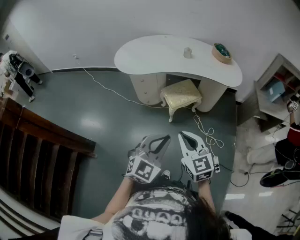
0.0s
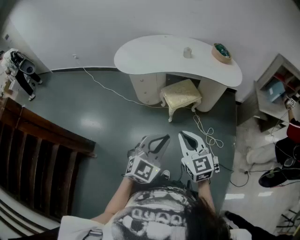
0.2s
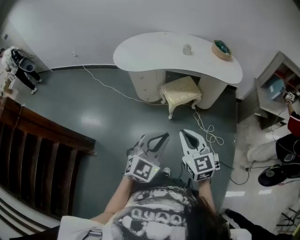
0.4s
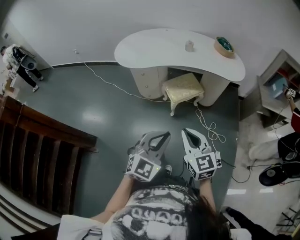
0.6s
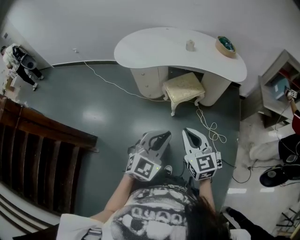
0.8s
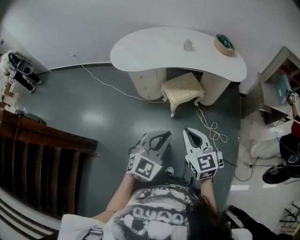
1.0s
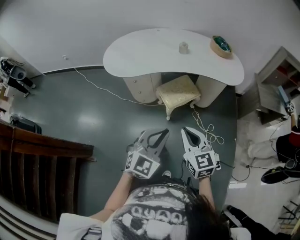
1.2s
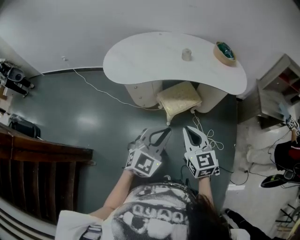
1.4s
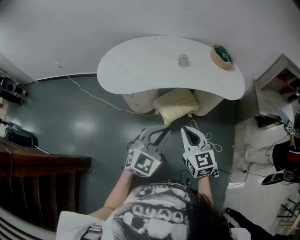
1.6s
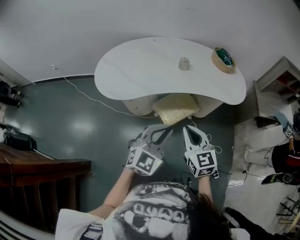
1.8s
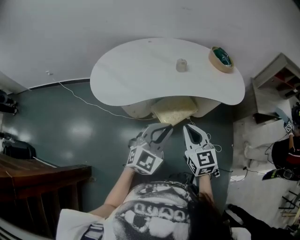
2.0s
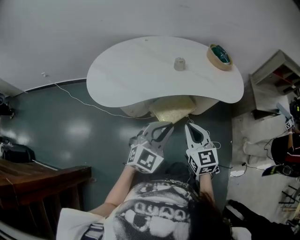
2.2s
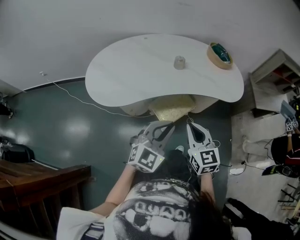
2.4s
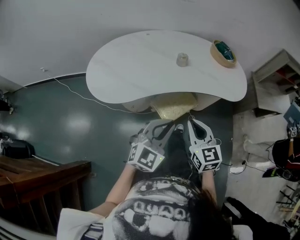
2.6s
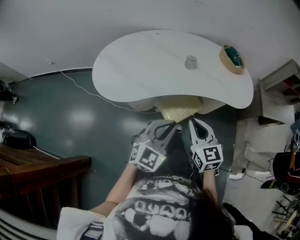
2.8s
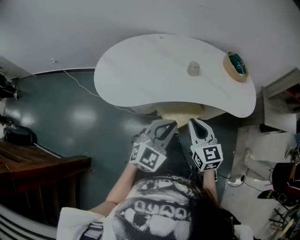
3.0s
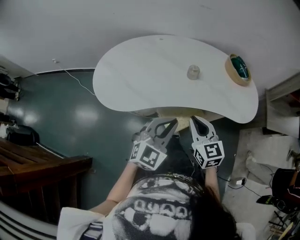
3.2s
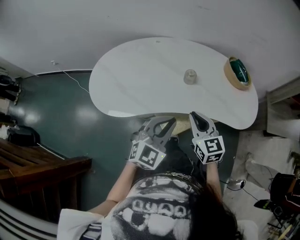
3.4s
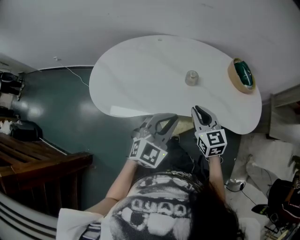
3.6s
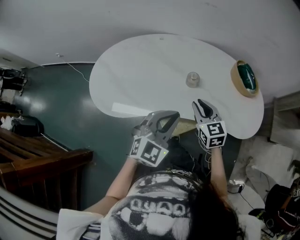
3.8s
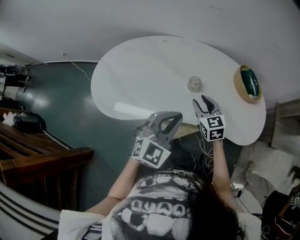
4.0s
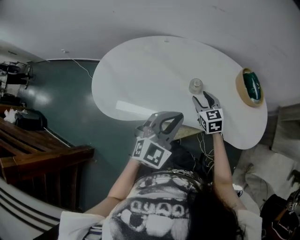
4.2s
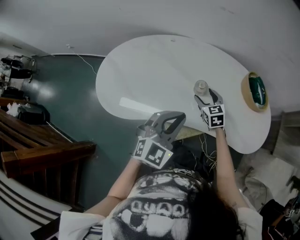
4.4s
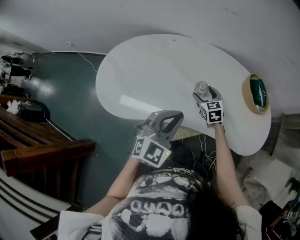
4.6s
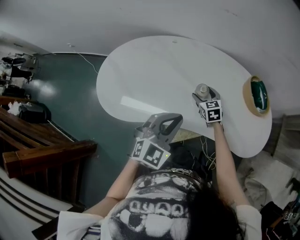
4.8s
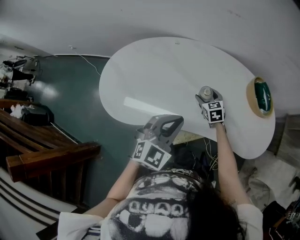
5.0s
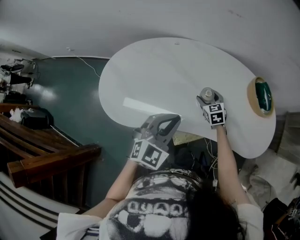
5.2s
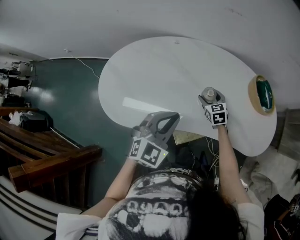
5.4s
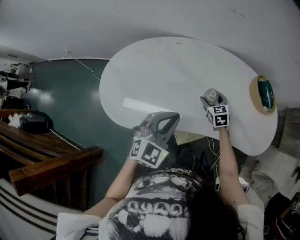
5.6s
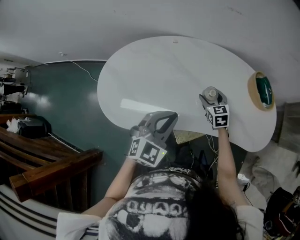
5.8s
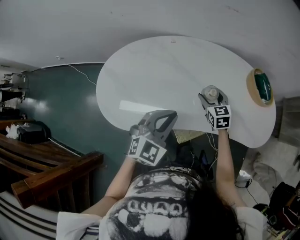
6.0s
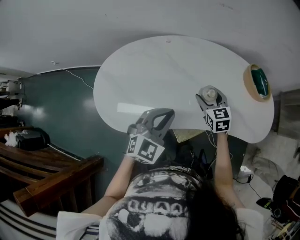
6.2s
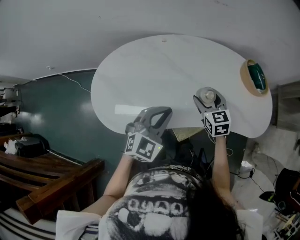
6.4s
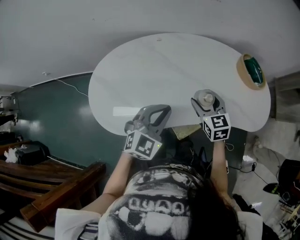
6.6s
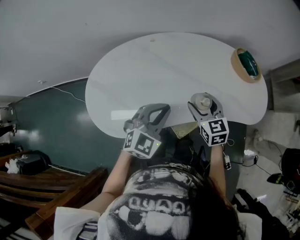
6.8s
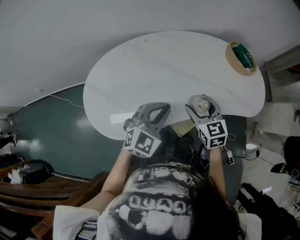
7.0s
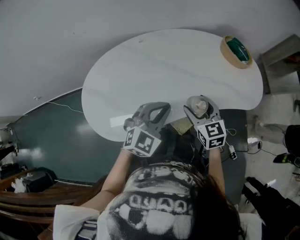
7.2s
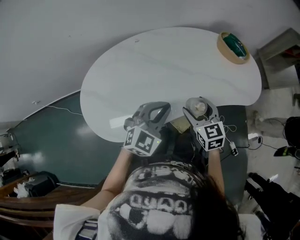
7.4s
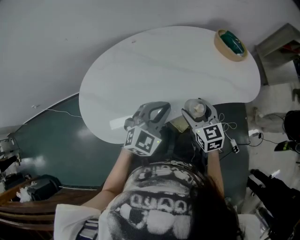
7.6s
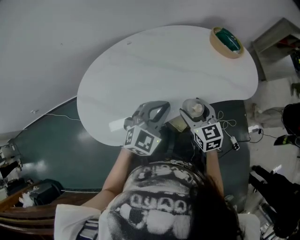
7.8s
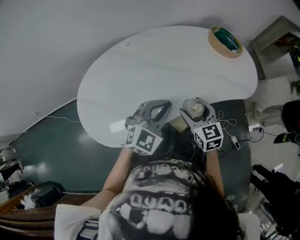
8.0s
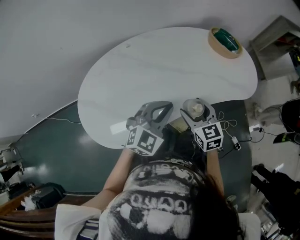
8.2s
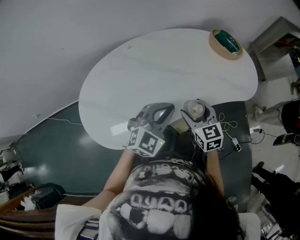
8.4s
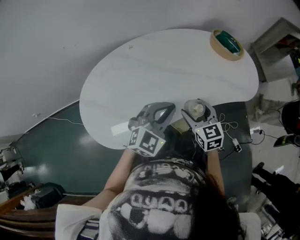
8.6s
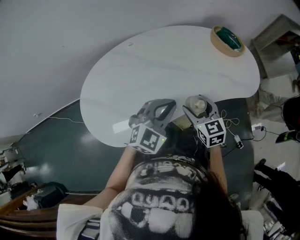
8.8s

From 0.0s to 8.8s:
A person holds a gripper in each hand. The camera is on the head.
From 0.0s to 1.4s: Both grippers travel together forward, about 20 cm.
From 1.4s to 3.0s: Both grippers travel together forward, approximately 25 cm.
From 3.0s to 4.4s: The right gripper goes about 35 cm forward and downward, and opens up. Meanwhile the left gripper heads forward, covering approximately 20 cm.
From 4.4s to 5.8s: The left gripper heads to the left, covering roughly 10 cm.
From 5.8s to 7.4s: The right gripper is displaced backward and upward by about 20 cm, while the left gripper rotates approximately 20 degrees.
From 7.4s to 8.8s: There are only small adjustments of the grippers.

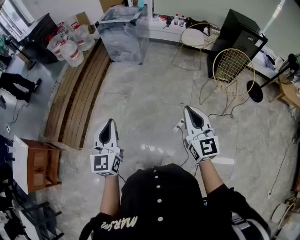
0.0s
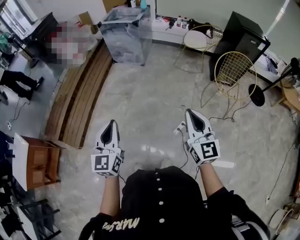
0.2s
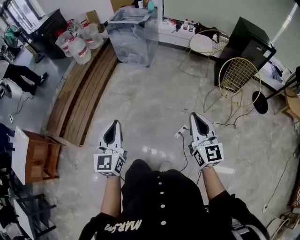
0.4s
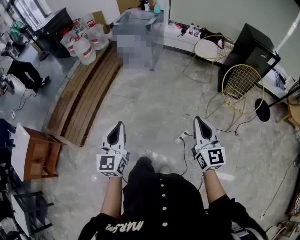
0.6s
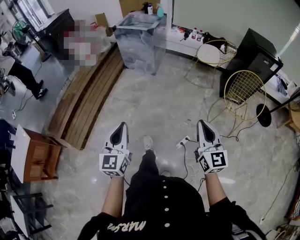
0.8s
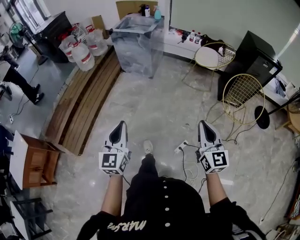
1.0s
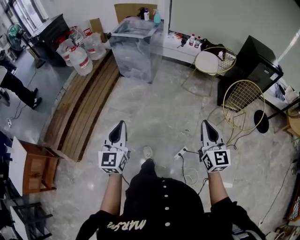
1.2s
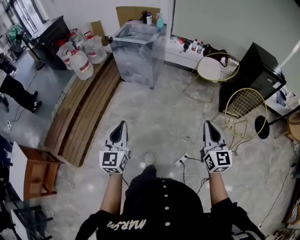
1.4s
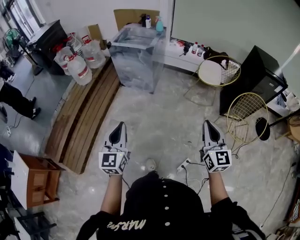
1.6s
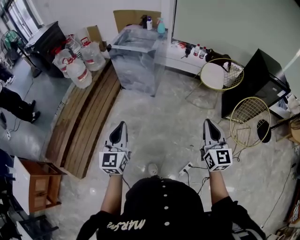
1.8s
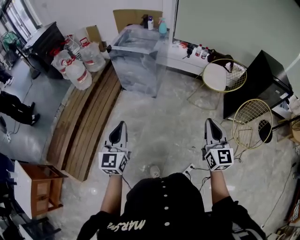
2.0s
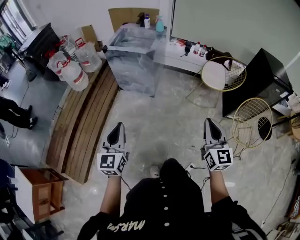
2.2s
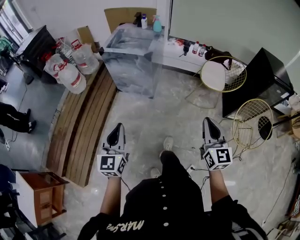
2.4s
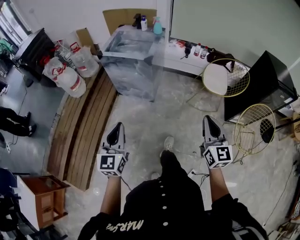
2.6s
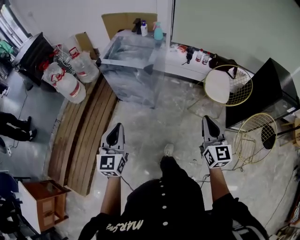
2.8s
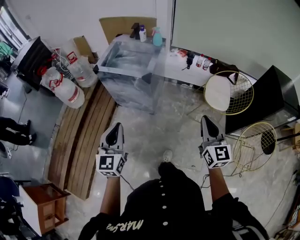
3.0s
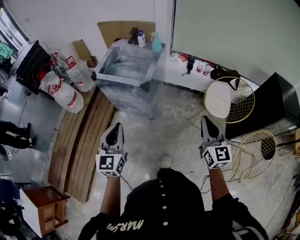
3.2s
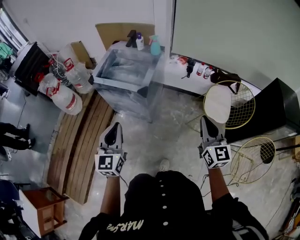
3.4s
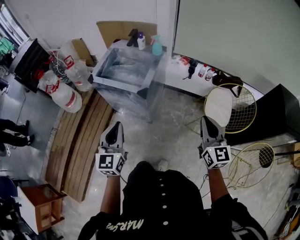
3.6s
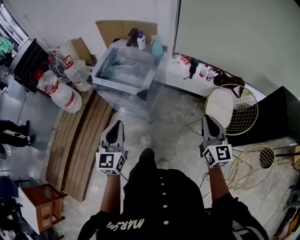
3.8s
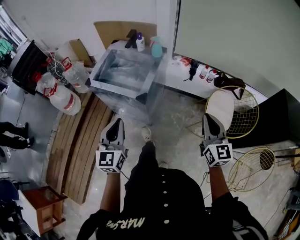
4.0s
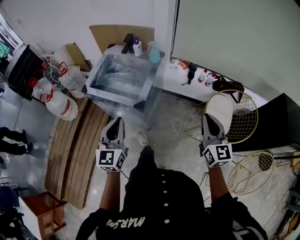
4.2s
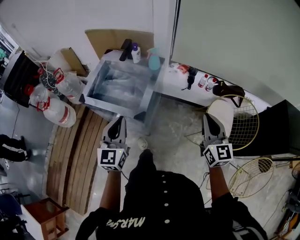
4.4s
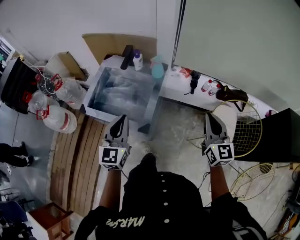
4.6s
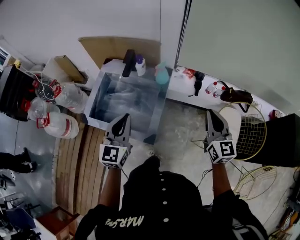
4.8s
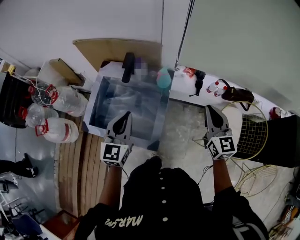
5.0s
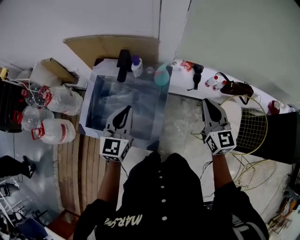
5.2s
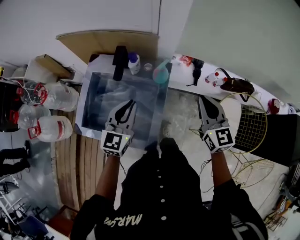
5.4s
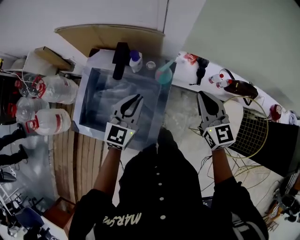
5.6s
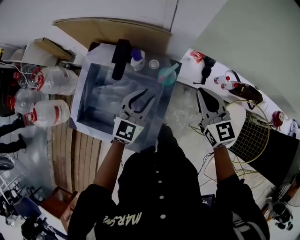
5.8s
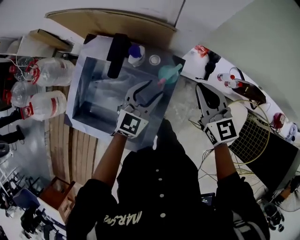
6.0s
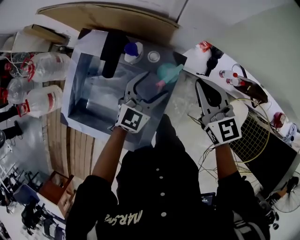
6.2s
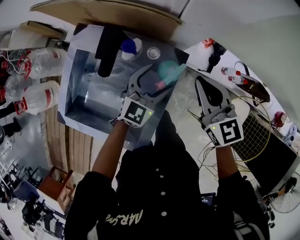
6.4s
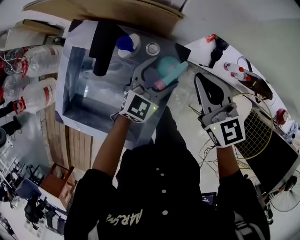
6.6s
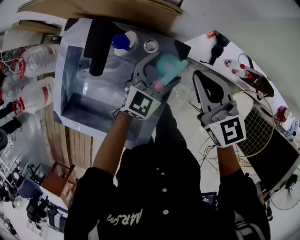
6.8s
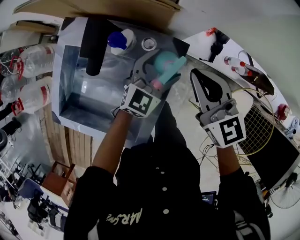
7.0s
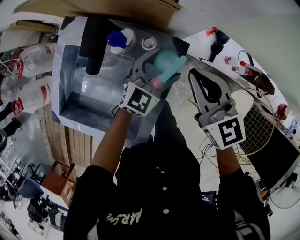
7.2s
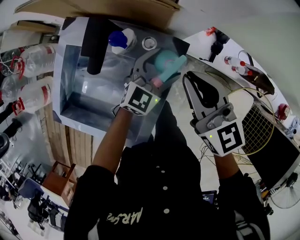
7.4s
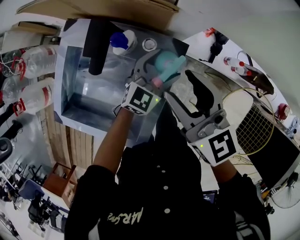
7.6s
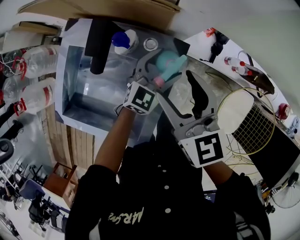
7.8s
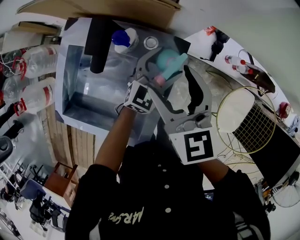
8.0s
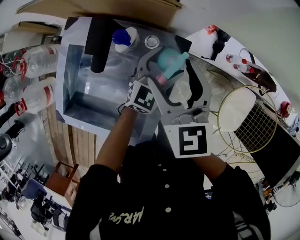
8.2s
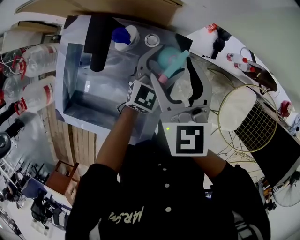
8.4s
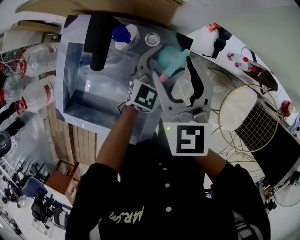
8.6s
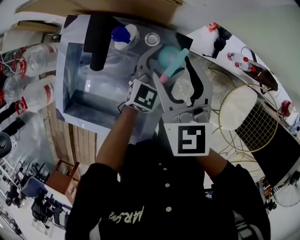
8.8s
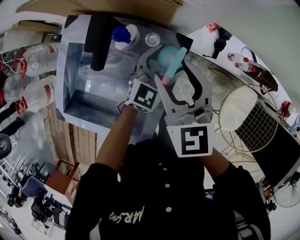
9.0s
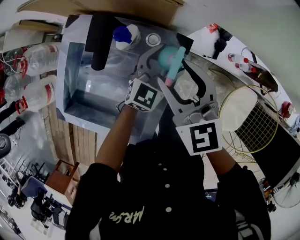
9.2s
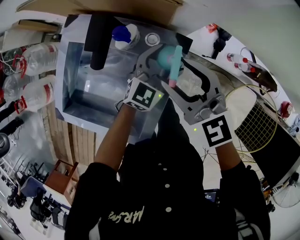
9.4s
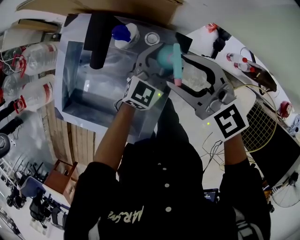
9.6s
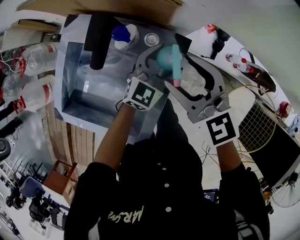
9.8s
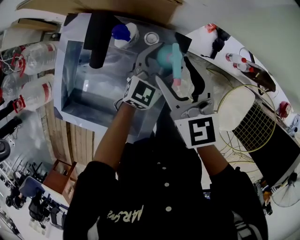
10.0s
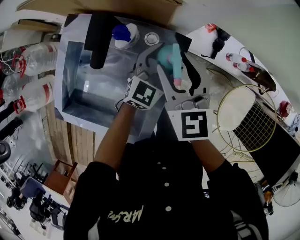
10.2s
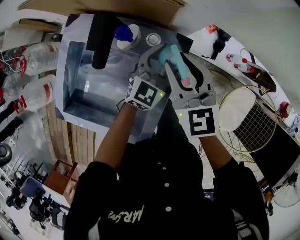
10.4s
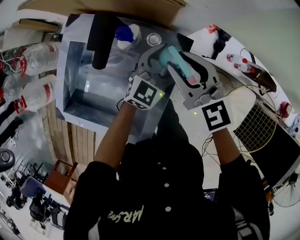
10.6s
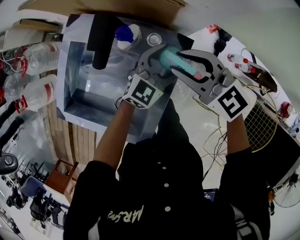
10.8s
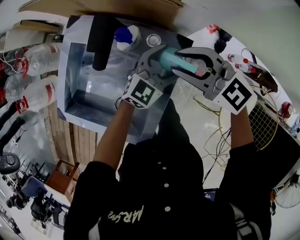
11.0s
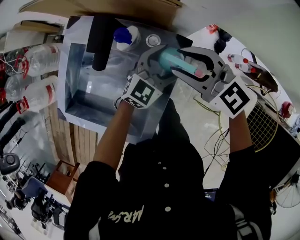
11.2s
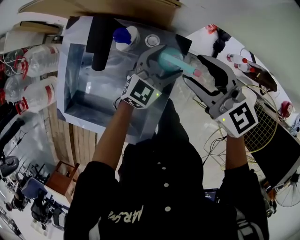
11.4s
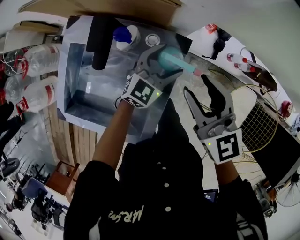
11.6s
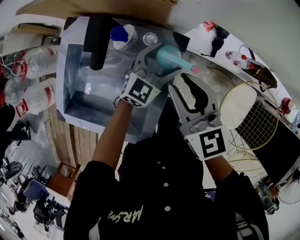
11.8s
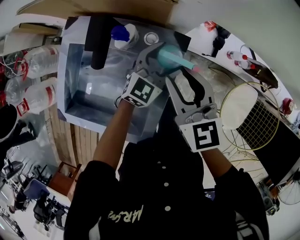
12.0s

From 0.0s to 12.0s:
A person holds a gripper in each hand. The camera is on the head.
From 0.0s to 1.6s: Both grippers move forward, roughly 30 cm.
From 1.6s to 3.0s: The two grippers travel together, forward, about 40 cm.
From 3.0s to 4.4s: The grippers both shift forward by approximately 35 cm.
From 4.4s to 6.0s: The two grippers travel together, forward, roughly 40 cm. The left gripper moves downward, roughly 20 cm, swivels roughly 30 degrees, and opens, while the right gripper turns by roughly 20 degrees.
From 6.0s to 7.6s: The right gripper travels to the left by roughly 10 cm, and opens up. Meanwhile the left gripper heads downward, forward and to the right, covering about 10 cm, and opens.

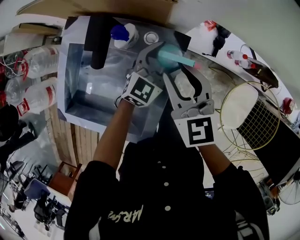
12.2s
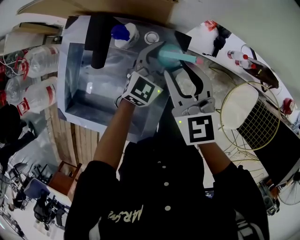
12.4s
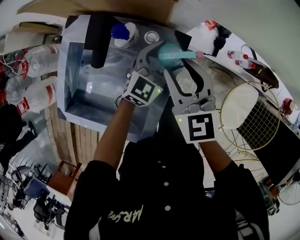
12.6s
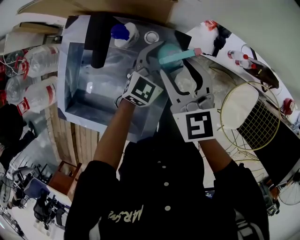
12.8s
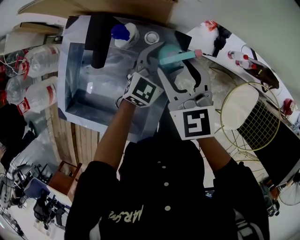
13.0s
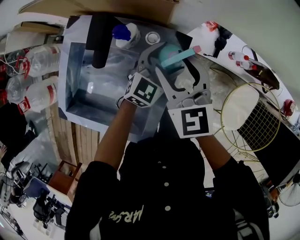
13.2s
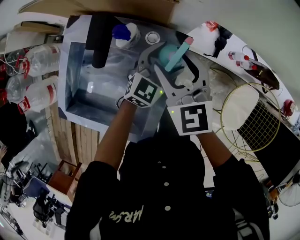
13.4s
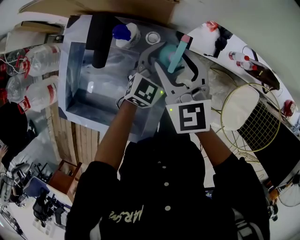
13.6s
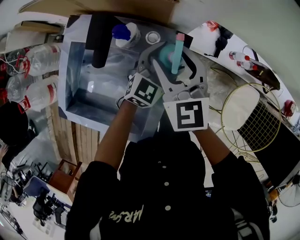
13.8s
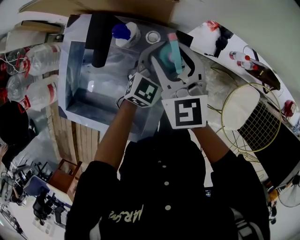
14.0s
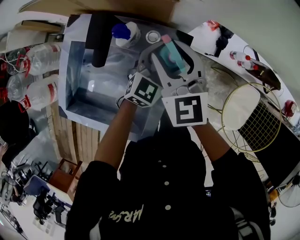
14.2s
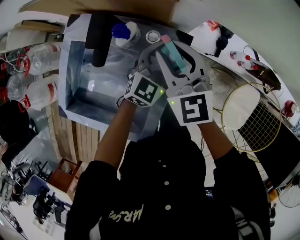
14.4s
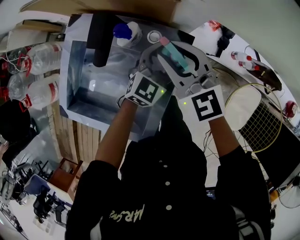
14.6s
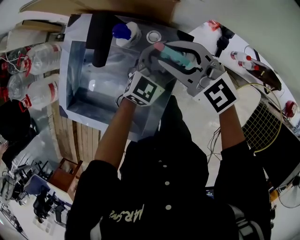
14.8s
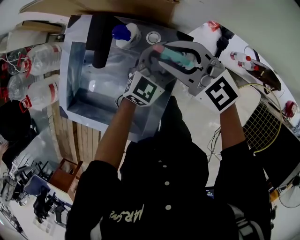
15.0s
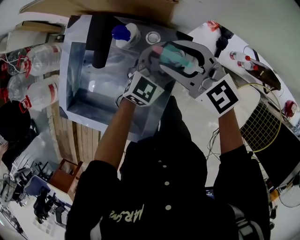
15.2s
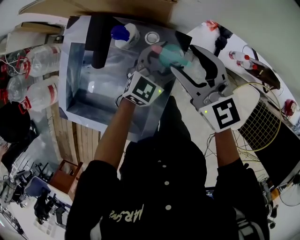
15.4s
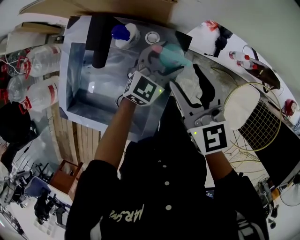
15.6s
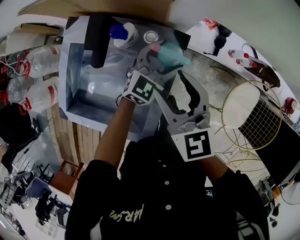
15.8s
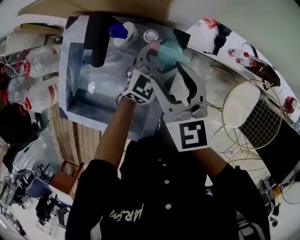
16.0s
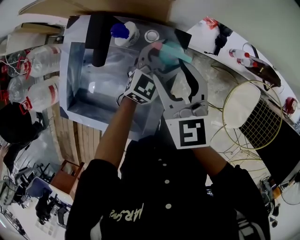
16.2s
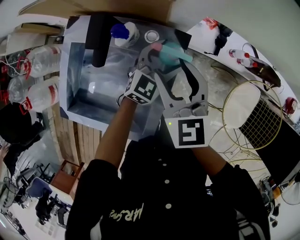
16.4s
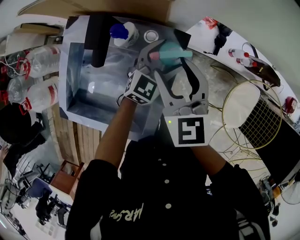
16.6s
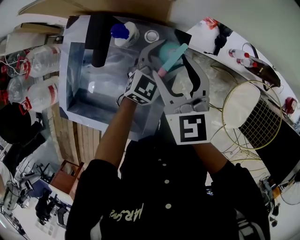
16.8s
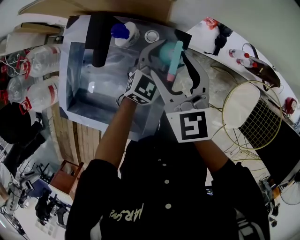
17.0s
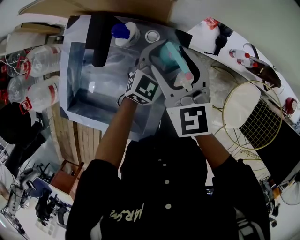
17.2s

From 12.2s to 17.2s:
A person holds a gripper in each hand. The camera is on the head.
From 12.2s to 13.8s: The grippers stay close to where they were, moving slightly.
From 13.8s to 15.6s: The right gripper ends up some 5 cm from where it was.
From 15.6s to 17.2s: The right gripper ends up roughly 5 cm from where it was.
